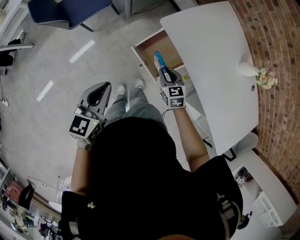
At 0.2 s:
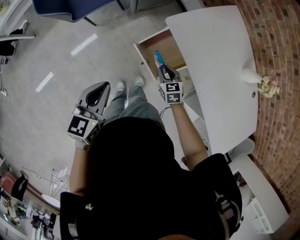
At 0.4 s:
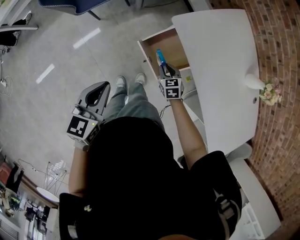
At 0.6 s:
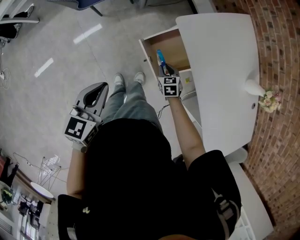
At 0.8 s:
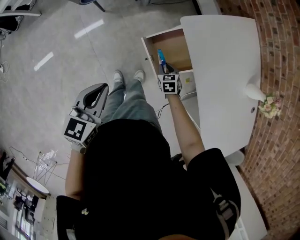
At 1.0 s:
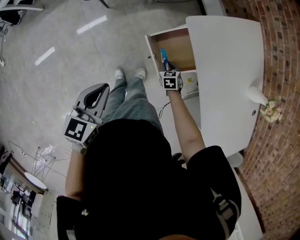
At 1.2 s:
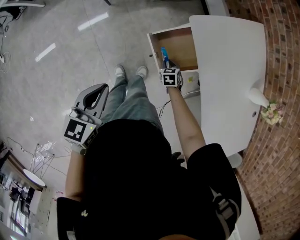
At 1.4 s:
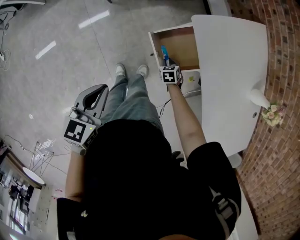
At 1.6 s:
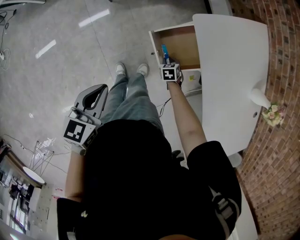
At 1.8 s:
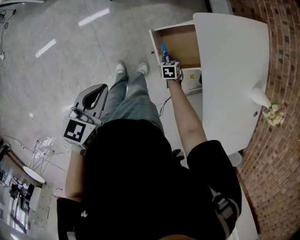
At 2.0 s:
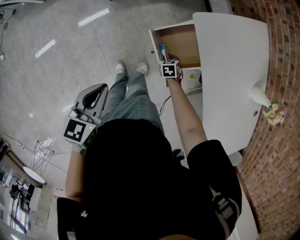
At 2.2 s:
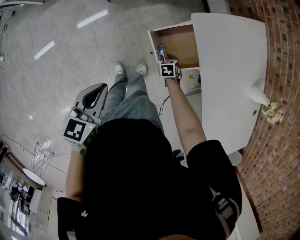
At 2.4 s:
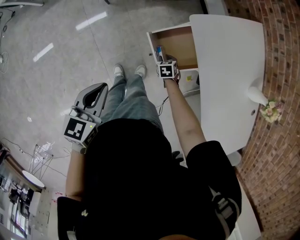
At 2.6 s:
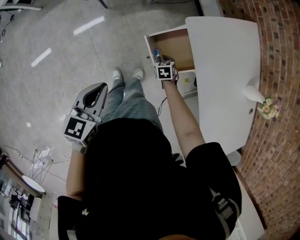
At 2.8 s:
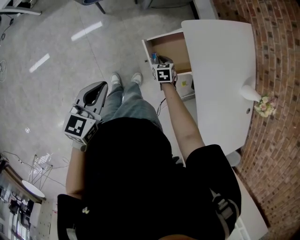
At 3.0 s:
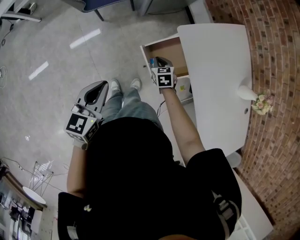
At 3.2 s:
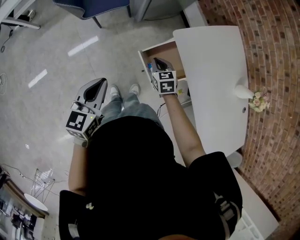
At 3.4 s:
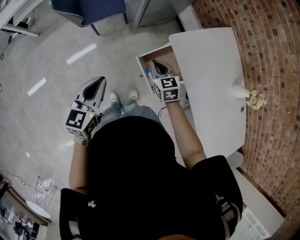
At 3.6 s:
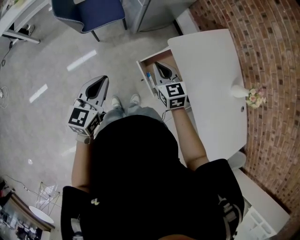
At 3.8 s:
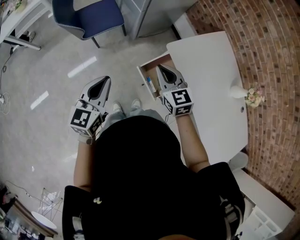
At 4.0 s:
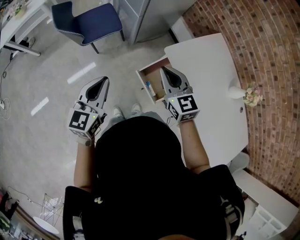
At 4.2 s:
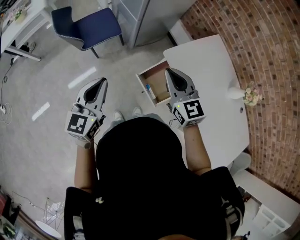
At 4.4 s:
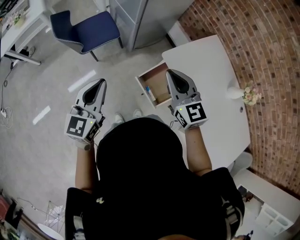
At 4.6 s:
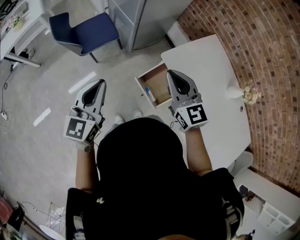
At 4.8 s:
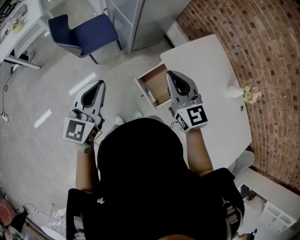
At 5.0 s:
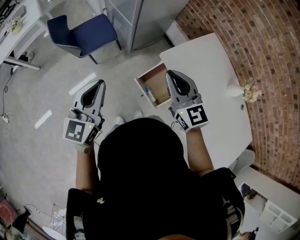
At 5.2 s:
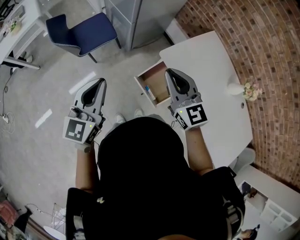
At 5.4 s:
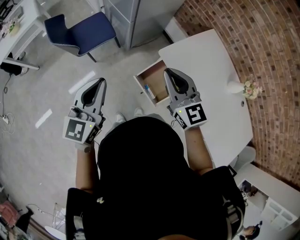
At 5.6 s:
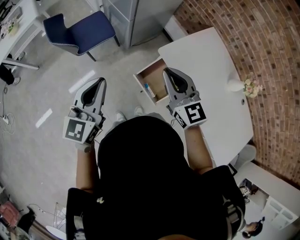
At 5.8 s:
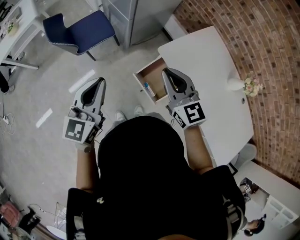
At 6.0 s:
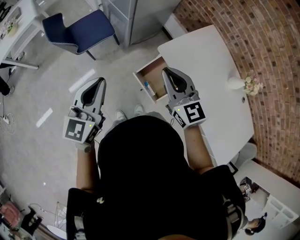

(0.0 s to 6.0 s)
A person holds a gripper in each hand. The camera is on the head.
0.0 s - 1.6 s: The left gripper travels backward and downward by some 10 cm, while the right gripper shifts roughly 25 cm downward, and changes its angle by approximately 30 degrees.
1.6 s - 3.0 s: The right gripper heads upward and to the left, covering some 15 cm.
3.0 s - 4.4 s: The right gripper goes some 40 cm upward, and tips its fingers upward by roughly 40 degrees. Meanwhile the left gripper is displaced upward and forward by about 15 cm, and swivels approximately 20 degrees.
4.4 s - 6.0 s: There are only small adjustments of the grippers.

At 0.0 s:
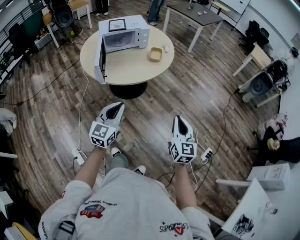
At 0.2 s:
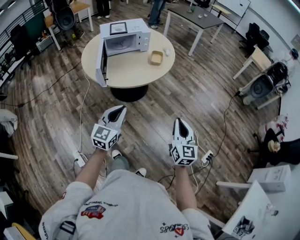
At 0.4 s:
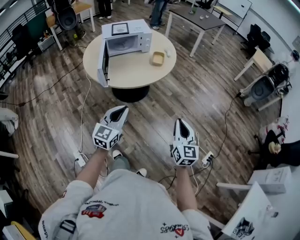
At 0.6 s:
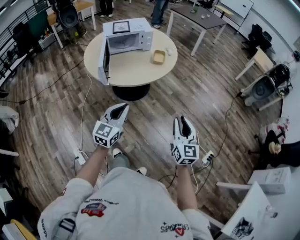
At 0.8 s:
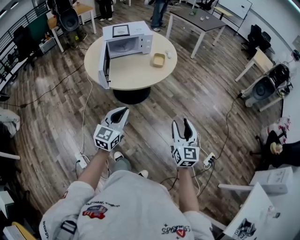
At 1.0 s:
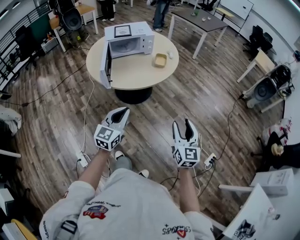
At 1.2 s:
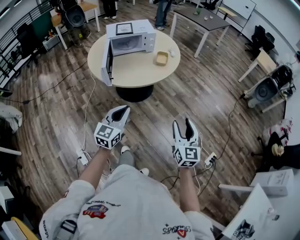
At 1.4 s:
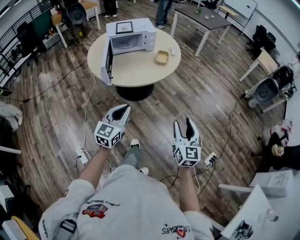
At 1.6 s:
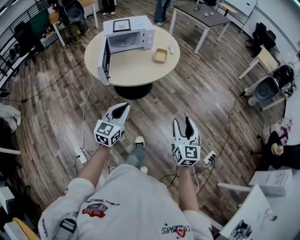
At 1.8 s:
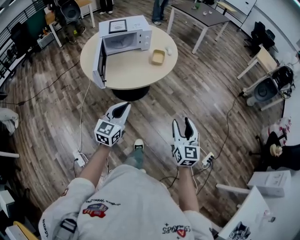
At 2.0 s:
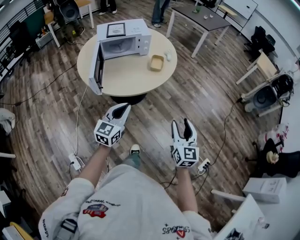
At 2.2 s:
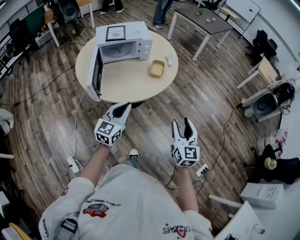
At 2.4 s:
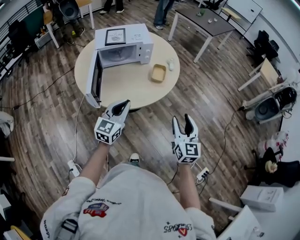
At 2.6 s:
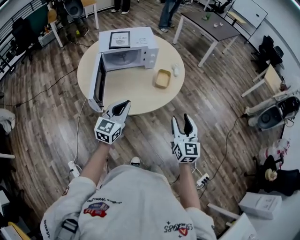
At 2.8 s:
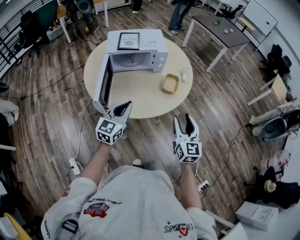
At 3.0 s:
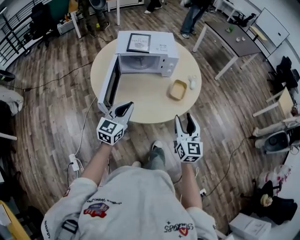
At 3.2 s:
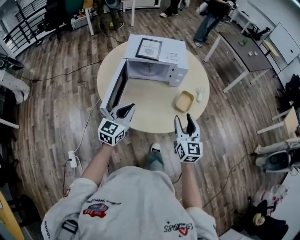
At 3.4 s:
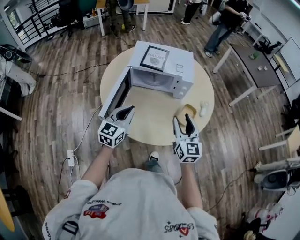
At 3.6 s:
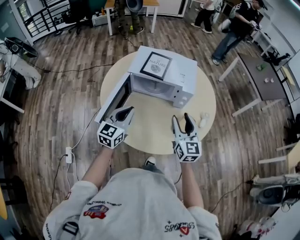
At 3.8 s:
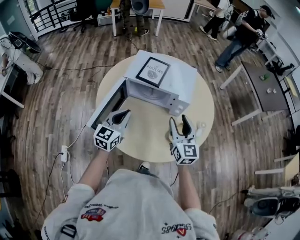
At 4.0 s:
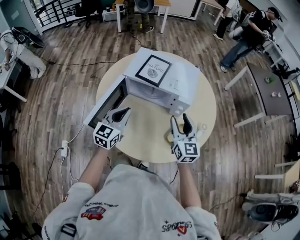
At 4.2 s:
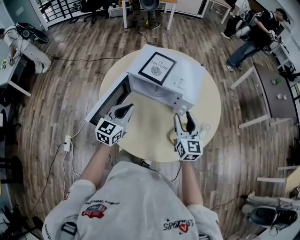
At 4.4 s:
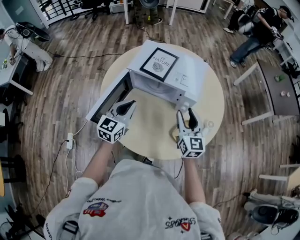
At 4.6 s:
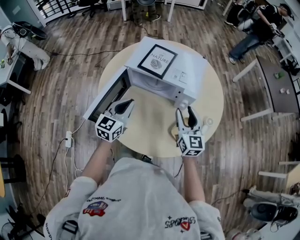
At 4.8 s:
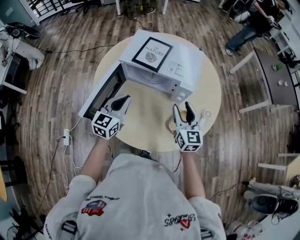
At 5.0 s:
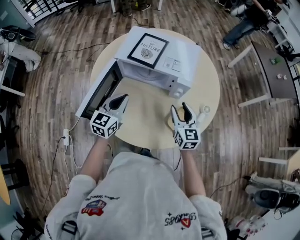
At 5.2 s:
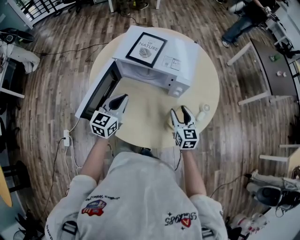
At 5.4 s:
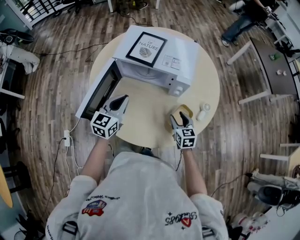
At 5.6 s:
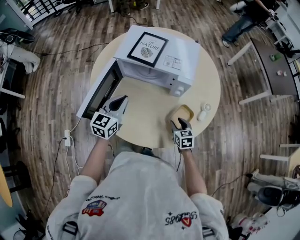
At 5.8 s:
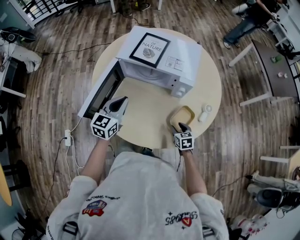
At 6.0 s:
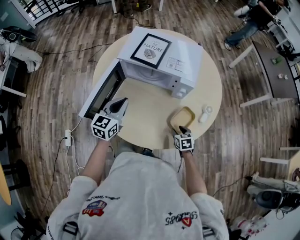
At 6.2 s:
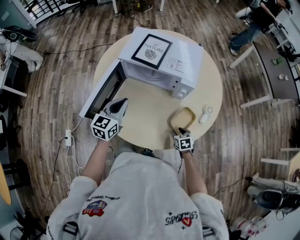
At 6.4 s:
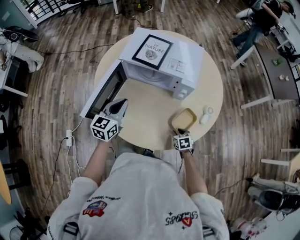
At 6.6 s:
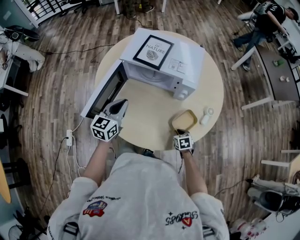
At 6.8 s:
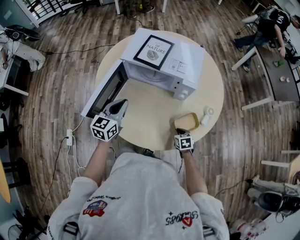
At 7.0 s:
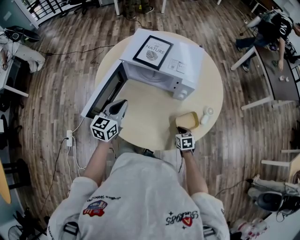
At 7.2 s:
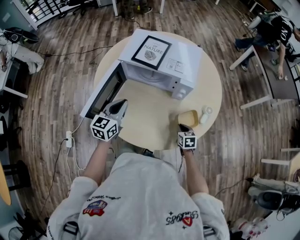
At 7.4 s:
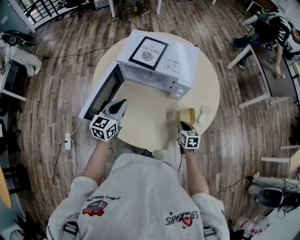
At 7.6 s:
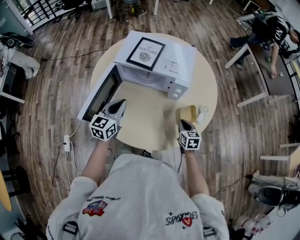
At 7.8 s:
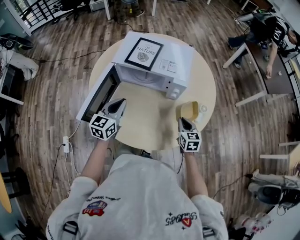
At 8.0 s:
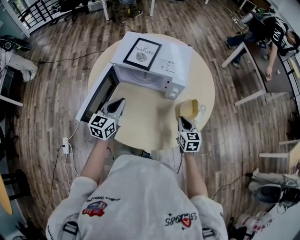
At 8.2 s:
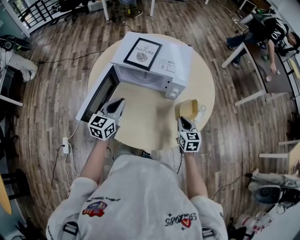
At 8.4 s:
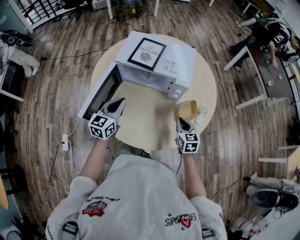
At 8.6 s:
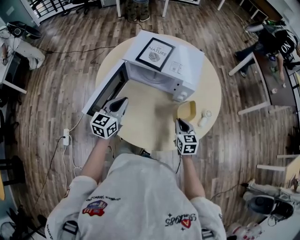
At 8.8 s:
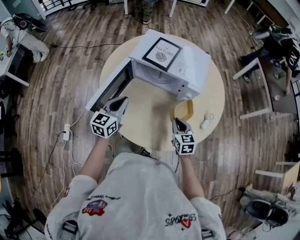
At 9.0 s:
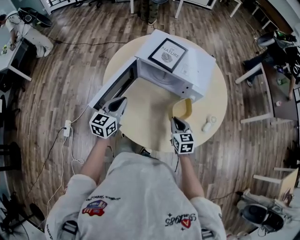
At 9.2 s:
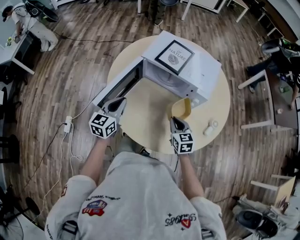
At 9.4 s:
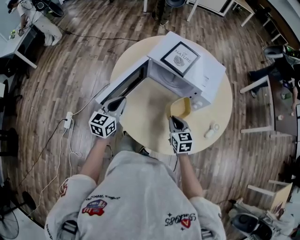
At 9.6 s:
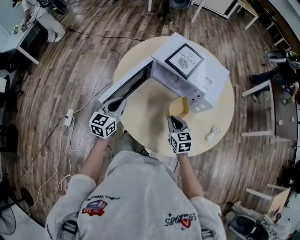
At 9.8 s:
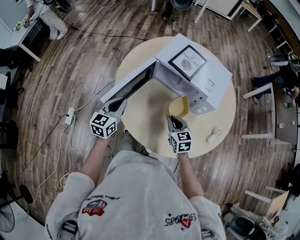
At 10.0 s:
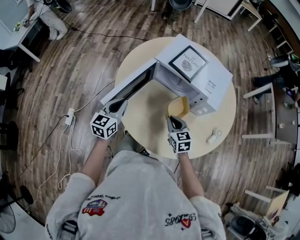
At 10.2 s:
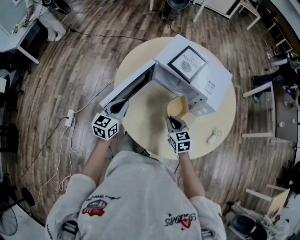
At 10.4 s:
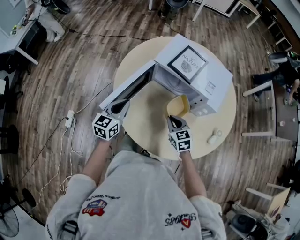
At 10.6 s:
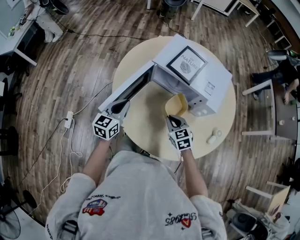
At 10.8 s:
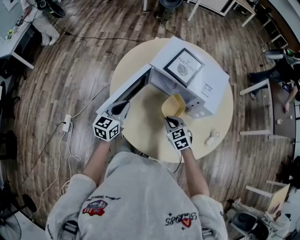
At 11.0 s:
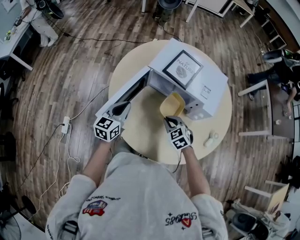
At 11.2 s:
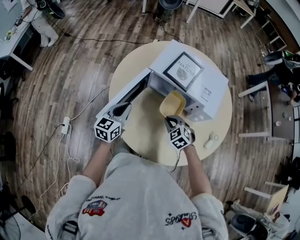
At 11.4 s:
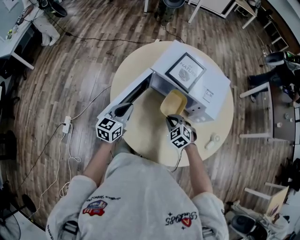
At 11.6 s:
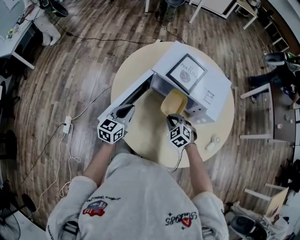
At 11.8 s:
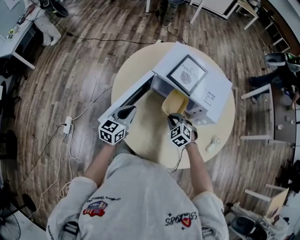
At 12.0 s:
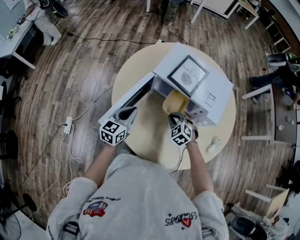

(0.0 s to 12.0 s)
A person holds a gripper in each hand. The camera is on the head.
0.0 s - 1.6 s: The right gripper opens up.
1.6 s - 3.0 s: The two grippers go roughly 35 cm forward.
3.0 s - 4.4 s: The right gripper changes place by some 35 cm, and changes its angle by approximately 30 degrees, while the left gripper moves about 20 cm, and rotates some 20 degrees.
4.4 s - 6.0 s: The right gripper shifts approximately 30 cm downward, and angles its fingers downward, by some 50 degrees; the left gripper moves downward, some 5 cm.
6.0 s - 7.6 s: The right gripper shifts roughly 10 cm upward, and closes its fingers.
7.6 s - 9.0 s: The left gripper moves to the left, about 5 cm. The right gripper heads to the left and upward, covering roughly 15 cm.
9.0 s - 10.4 s: The right gripper moves to the left and forward, about 10 cm. Meanwhile the left gripper moves to the left, roughly 5 cm.
10.4 s - 12.0 s: The left gripper shifts by some 5 cm. The right gripper travels forward by some 10 cm, and changes its angle by roughly 30 degrees.

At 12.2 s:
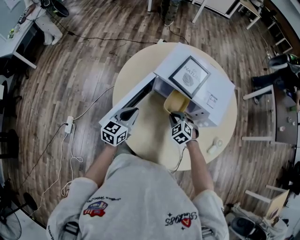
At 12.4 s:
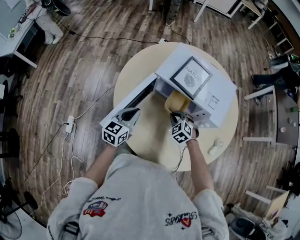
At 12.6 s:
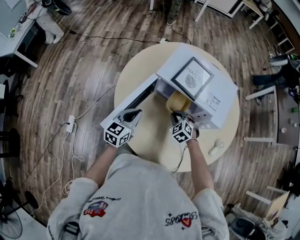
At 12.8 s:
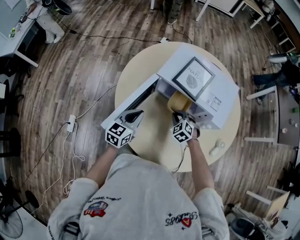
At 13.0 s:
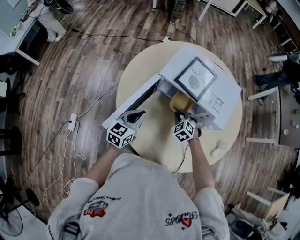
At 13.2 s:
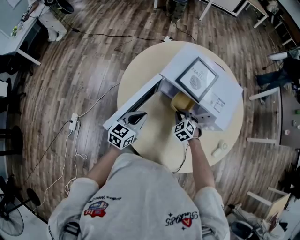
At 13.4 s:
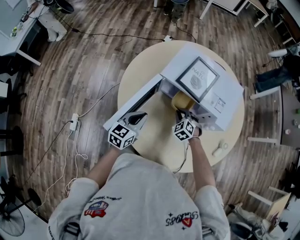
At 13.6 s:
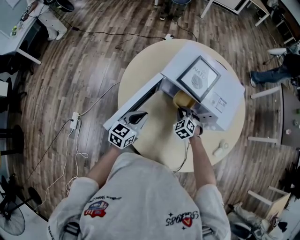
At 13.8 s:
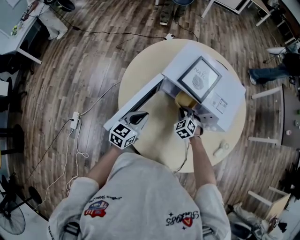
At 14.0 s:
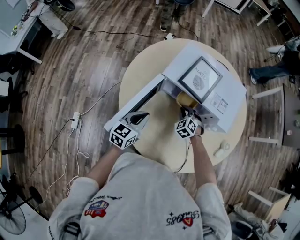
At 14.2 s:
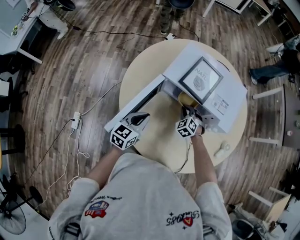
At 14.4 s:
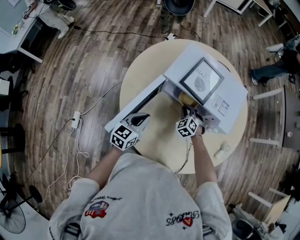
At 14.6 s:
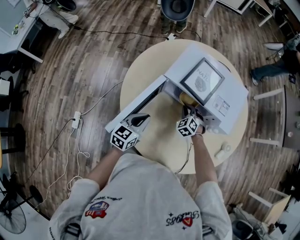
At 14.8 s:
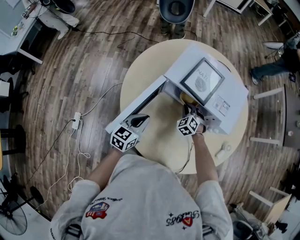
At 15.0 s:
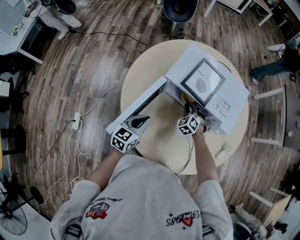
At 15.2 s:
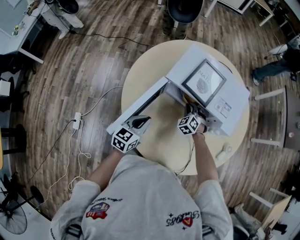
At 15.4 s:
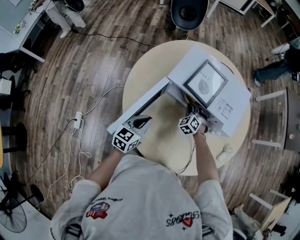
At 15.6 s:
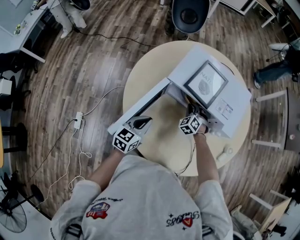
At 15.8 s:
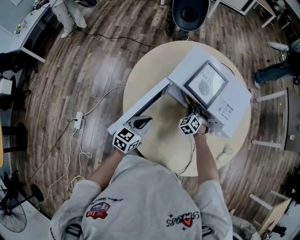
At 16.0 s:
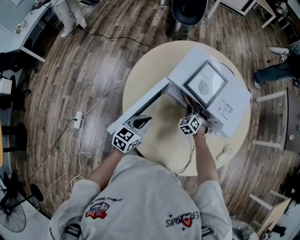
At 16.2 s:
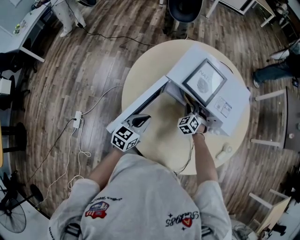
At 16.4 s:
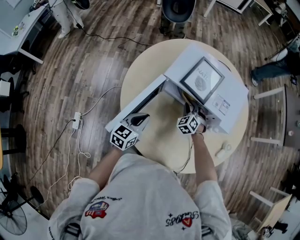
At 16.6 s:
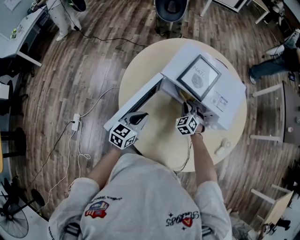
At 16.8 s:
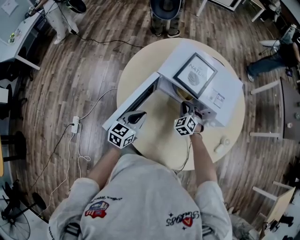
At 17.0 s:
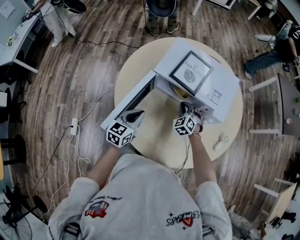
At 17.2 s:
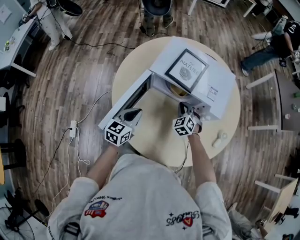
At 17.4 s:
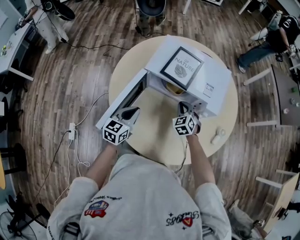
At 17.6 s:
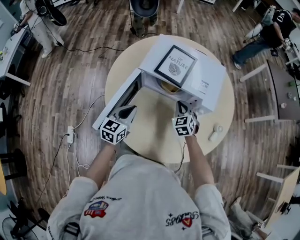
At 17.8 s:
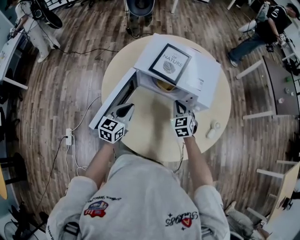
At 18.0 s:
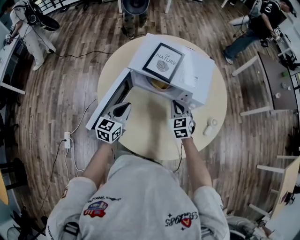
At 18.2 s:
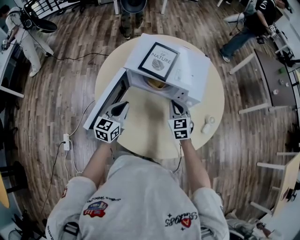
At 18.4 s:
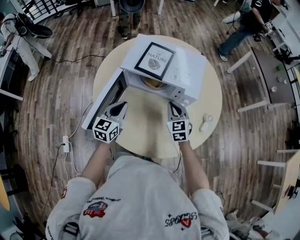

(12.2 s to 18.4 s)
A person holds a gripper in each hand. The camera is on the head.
12.2 s - 13.8 s: The right gripper moves forward and downward, about 10 cm.
13.8 s - 15.4 s: The right gripper is displaced forward by some 5 cm.
15.4 s - 16.8 s: The right gripper changes place by roughly 5 cm.
16.8 s - 18.4 s: The right gripper travels upward, to the right and backward by roughly 20 cm, and changes its angle by approximately 40 degrees, while the left gripper heads to the right and upward, covering roughly 10 cm.
